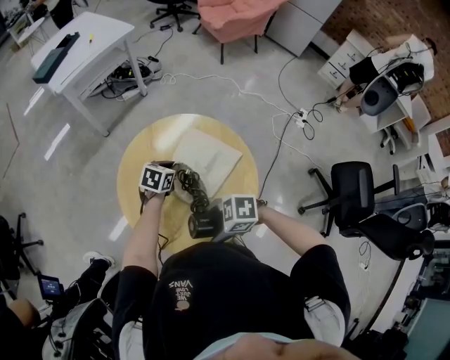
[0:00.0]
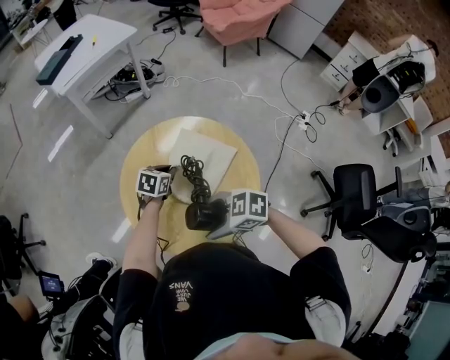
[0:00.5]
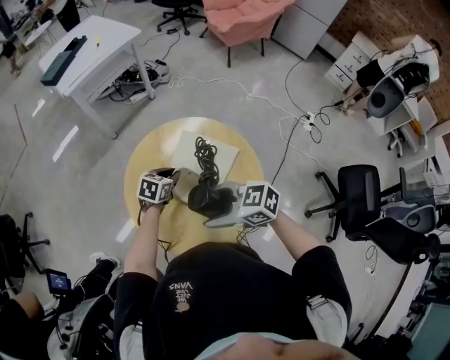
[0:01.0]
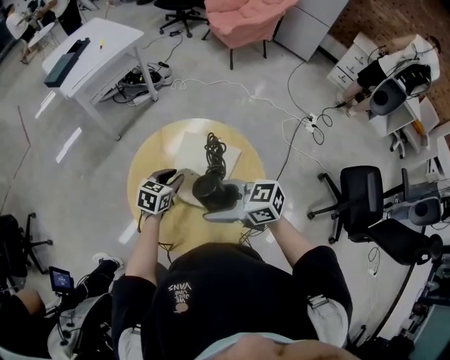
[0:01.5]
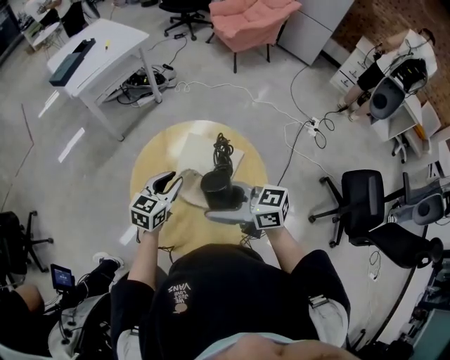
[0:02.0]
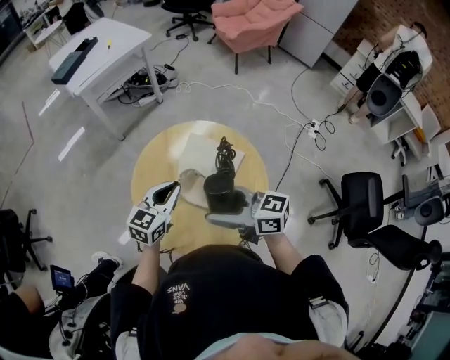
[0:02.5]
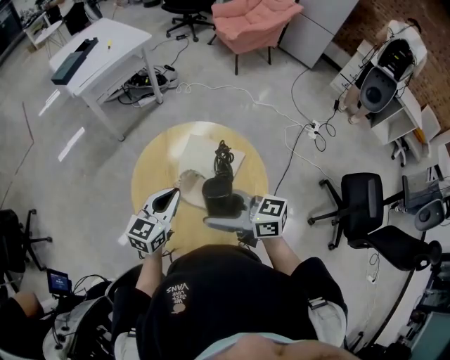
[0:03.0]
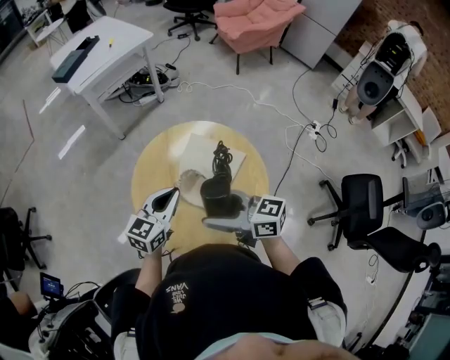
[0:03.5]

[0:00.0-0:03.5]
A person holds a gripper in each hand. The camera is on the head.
0.0 to 2.0 s: Both grippers move upward, approximately 15 cm. The right gripper tips its fingers upward by approximately 40 degrees. Meanwhile the left gripper rotates about 30 degrees.
2.0 to 3.5 s: The left gripper ends up approximately 5 cm from where it was, and closes.

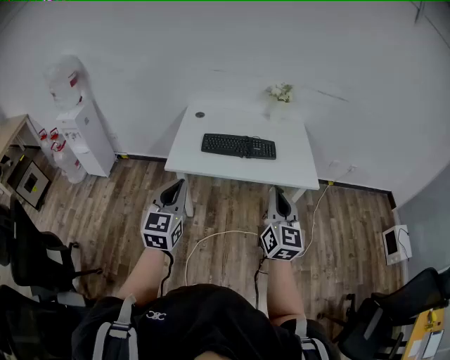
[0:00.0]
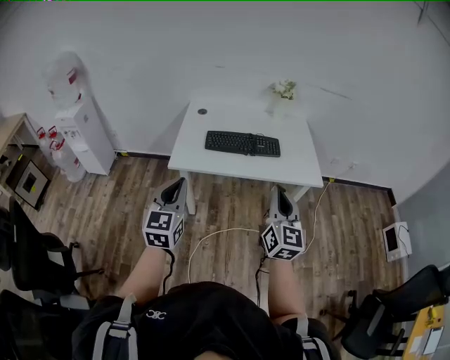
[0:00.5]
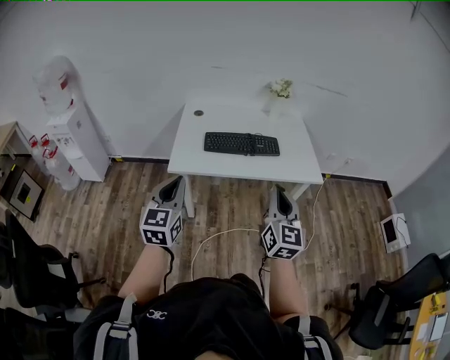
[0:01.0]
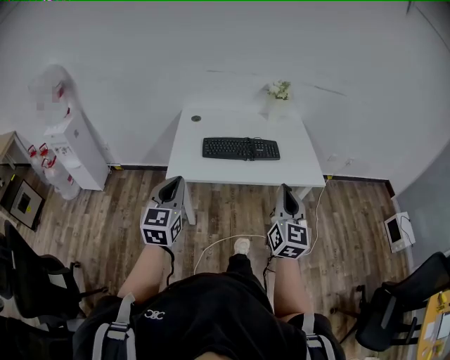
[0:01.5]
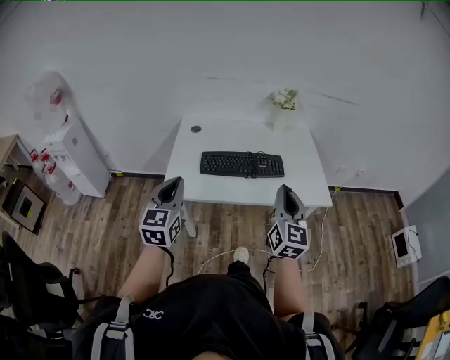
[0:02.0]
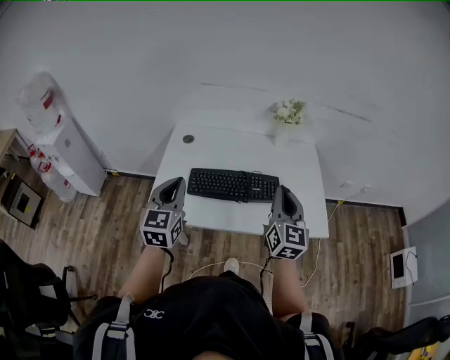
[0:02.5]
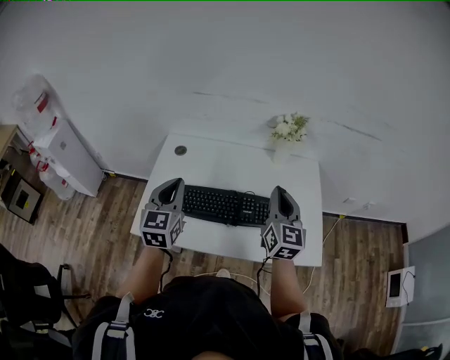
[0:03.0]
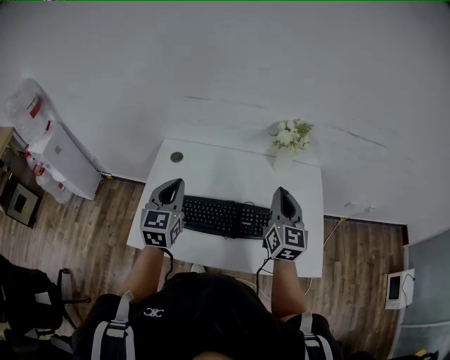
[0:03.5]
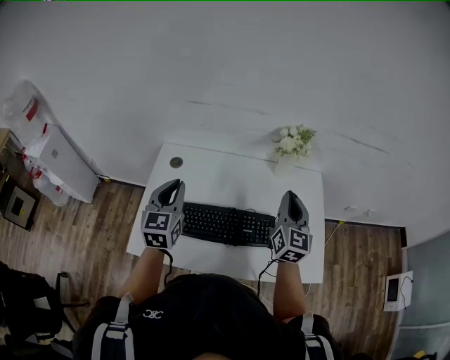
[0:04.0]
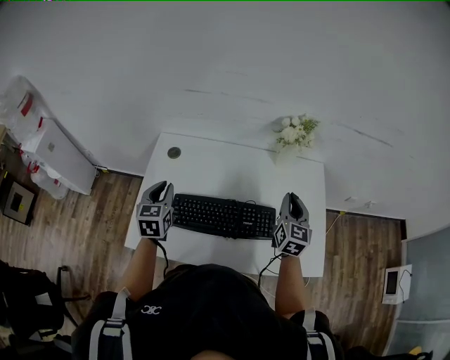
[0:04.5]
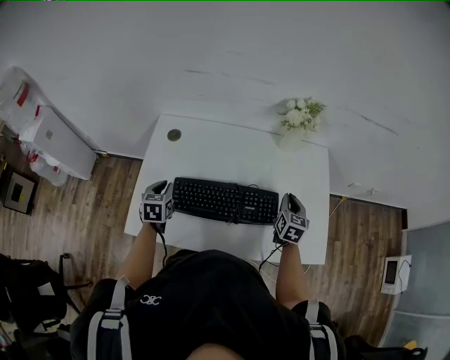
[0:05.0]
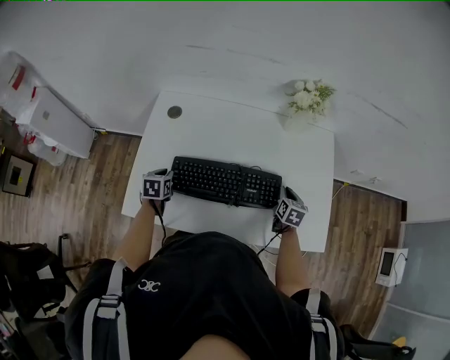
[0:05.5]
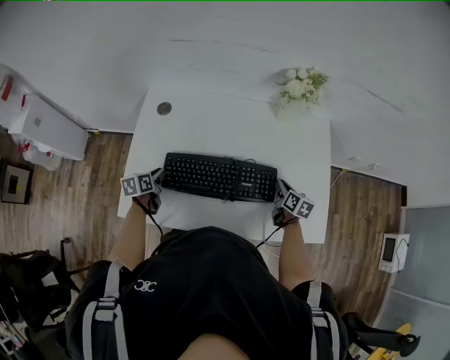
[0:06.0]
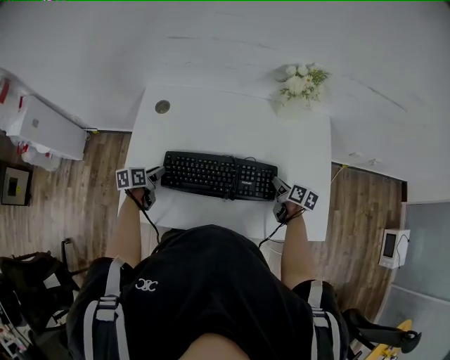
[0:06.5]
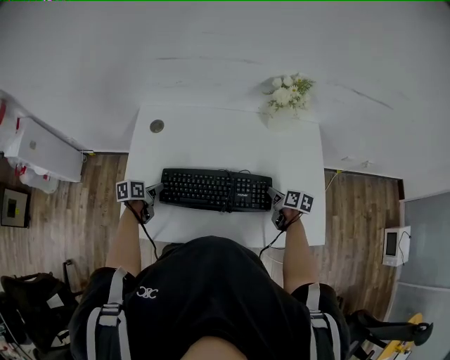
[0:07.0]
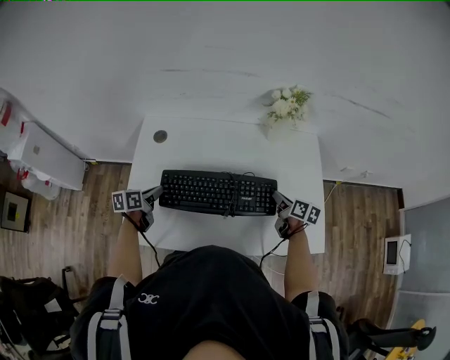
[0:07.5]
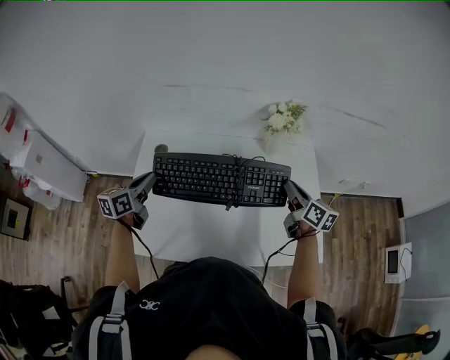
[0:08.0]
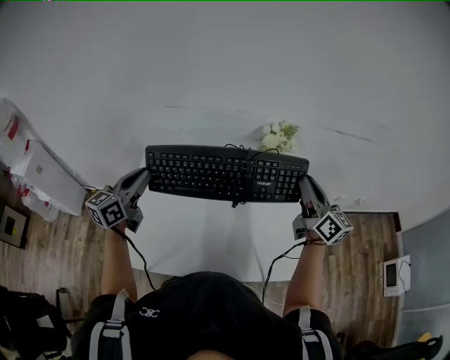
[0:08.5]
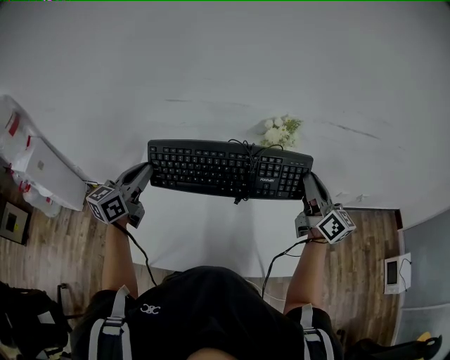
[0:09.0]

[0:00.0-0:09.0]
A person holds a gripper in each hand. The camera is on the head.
0.0 to 2.0 s: The two grippers go some 20 cm forward.
2.0 to 4.5 s: The pair of grippers is taken forward, about 40 cm. The left gripper turns by about 20 degrees.
4.5 to 7.0 s: The grippers both shift downward by about 25 cm. The left gripper turns by roughly 50 degrees, while the right gripper tilts its fingers some 30 degrees downward.
7.0 to 9.0 s: Both grippers travel together upward, about 35 cm. The right gripper tilts its fingers roughly 50 degrees upward, while the left gripper points its fingers approximately 40 degrees further upward.

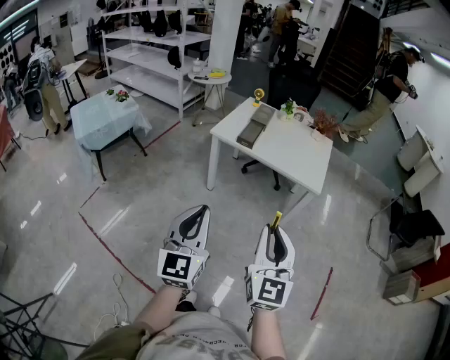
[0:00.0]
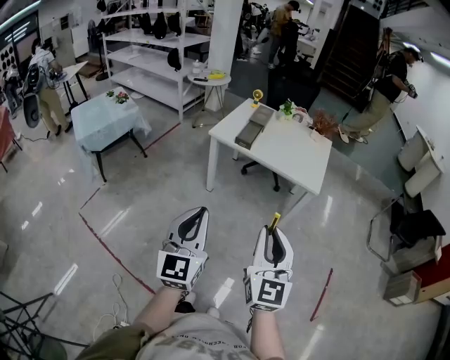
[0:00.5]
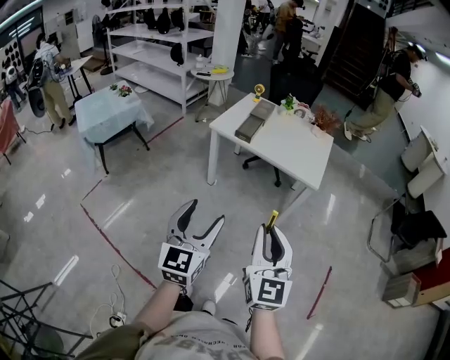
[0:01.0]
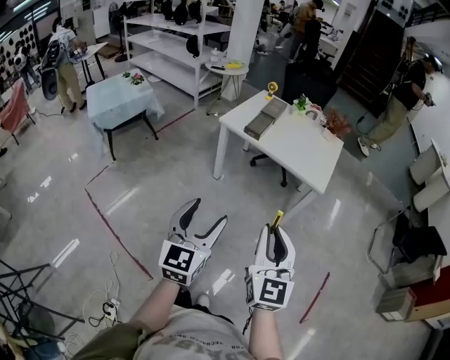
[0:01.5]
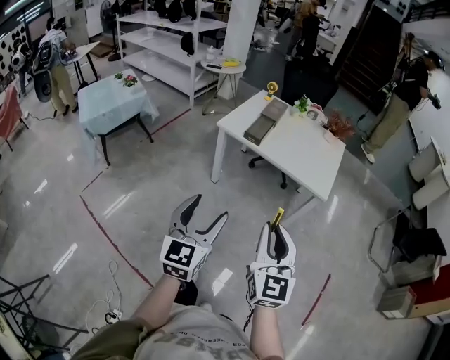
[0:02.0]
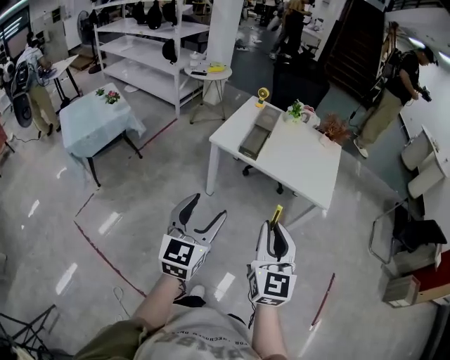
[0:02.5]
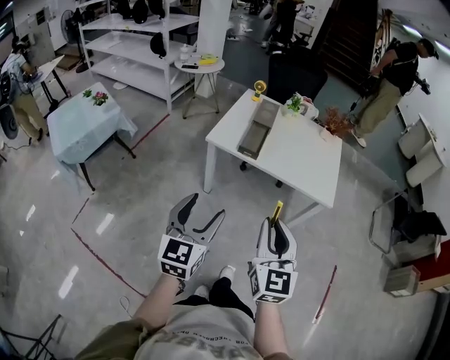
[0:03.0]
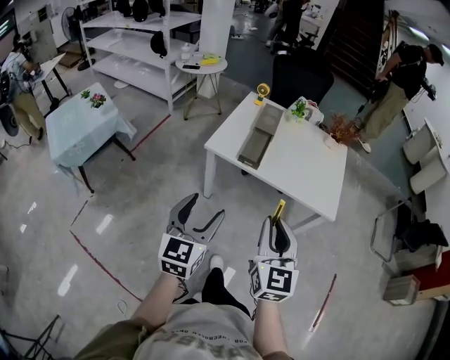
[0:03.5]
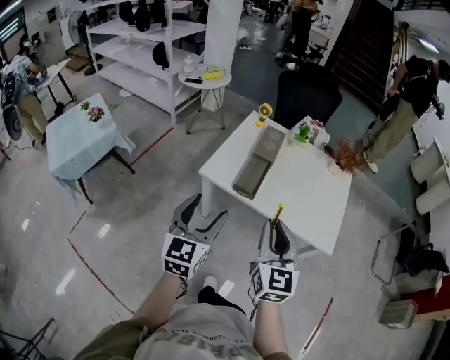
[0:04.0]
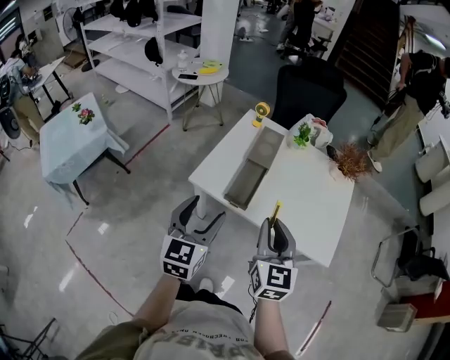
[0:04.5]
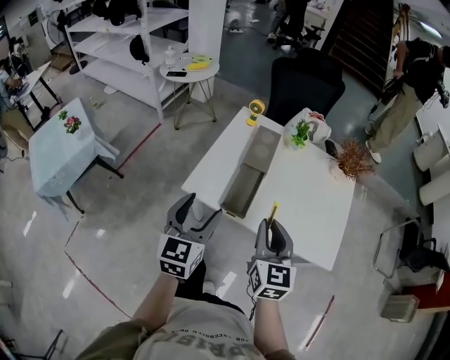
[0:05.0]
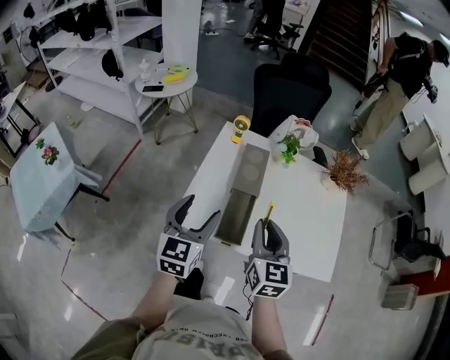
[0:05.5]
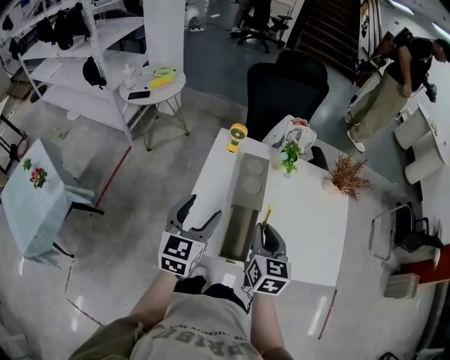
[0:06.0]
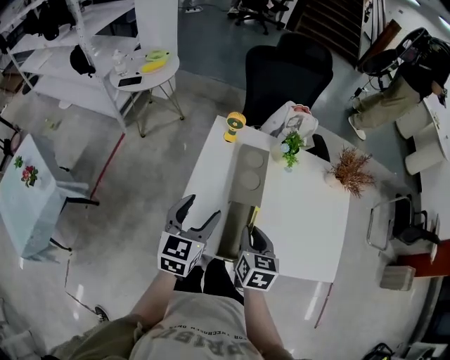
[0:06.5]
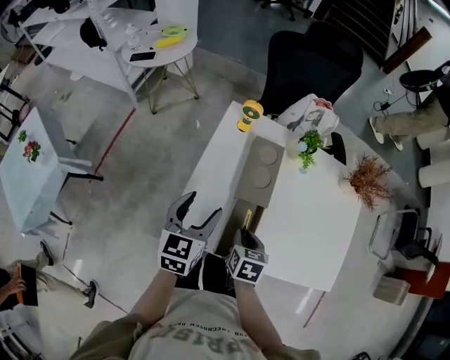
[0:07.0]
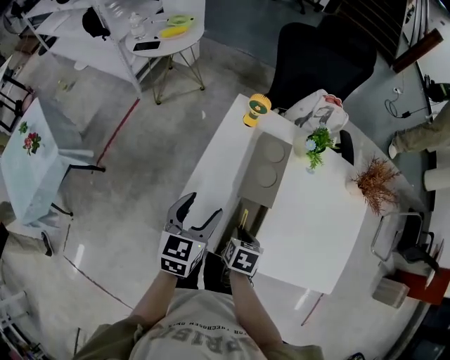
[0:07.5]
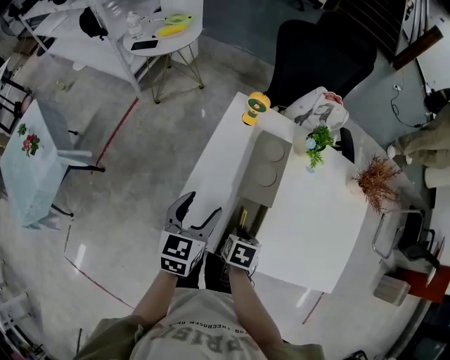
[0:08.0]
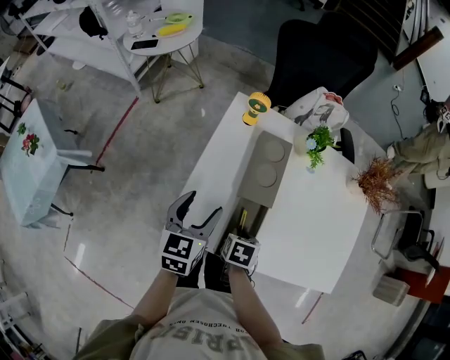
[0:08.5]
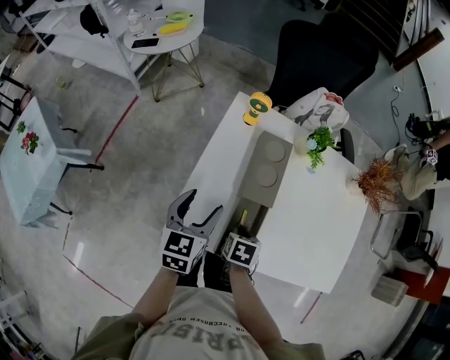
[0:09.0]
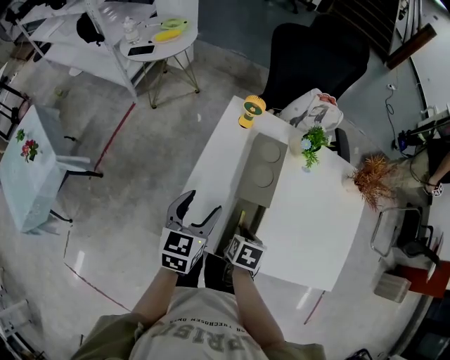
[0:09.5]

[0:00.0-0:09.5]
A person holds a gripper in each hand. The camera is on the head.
0.0 to 2.0 s: The right gripper travels forward by some 5 cm. The left gripper heads forward and downward, covering about 10 cm, and opens.
2.0 to 4.0 s: Both grippers travel together forward, approximately 35 cm.
4.0 to 5.5 s: The two grippers go some 25 cm forward.
5.5 to 7.5 s: The left gripper shifts about 15 cm downward and forward. Meanwhile the right gripper travels downward by some 25 cm, and tips its fingers downward by some 50 degrees.
7.5 to 9.5 s: There are only small adjustments of the grippers.

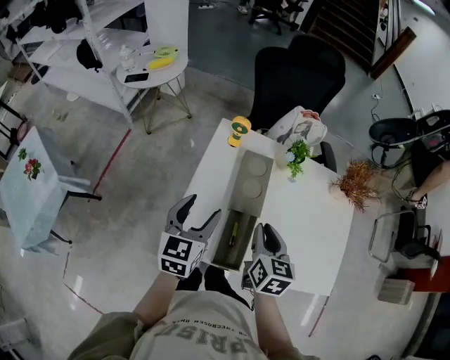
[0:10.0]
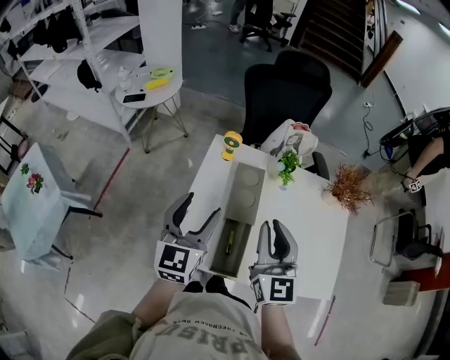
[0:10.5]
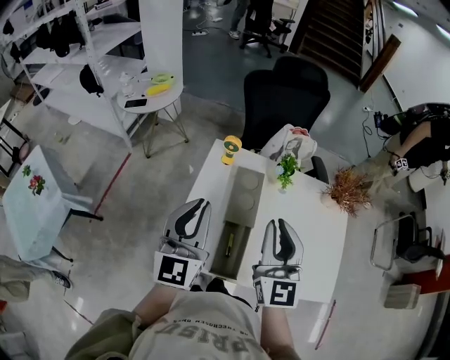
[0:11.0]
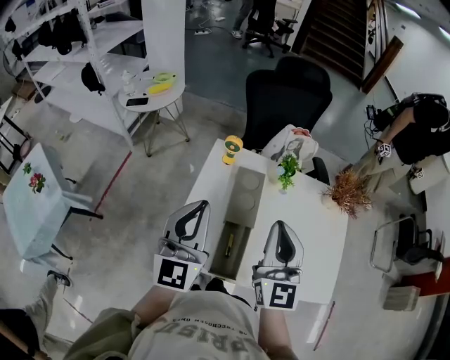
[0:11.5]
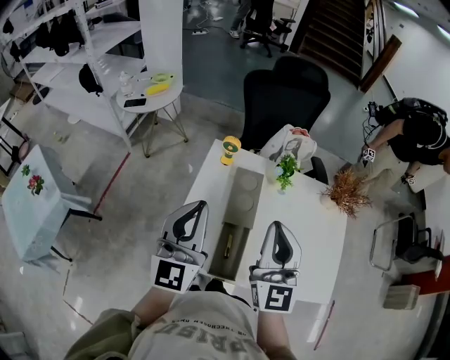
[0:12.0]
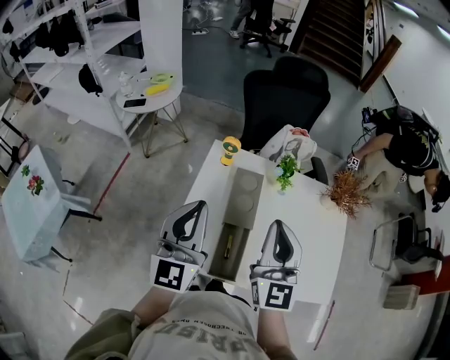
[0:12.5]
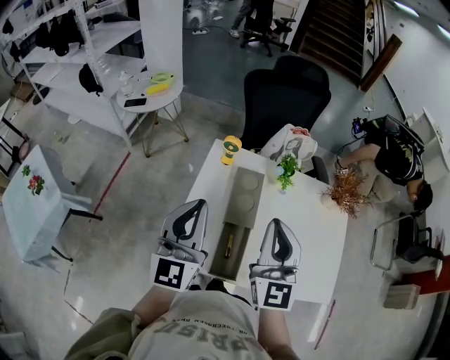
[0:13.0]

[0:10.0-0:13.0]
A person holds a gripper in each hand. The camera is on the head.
10.0 to 11.5 s: The grippers both shift upward by about 15 cm. The left gripper tips its fingers upward by approximately 30 degrees, and closes; the right gripper points its fingers some 40 degrees further upward.
11.5 to 13.0 s: Both grippers stay about where they are.

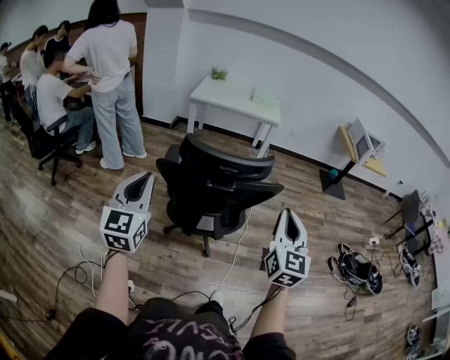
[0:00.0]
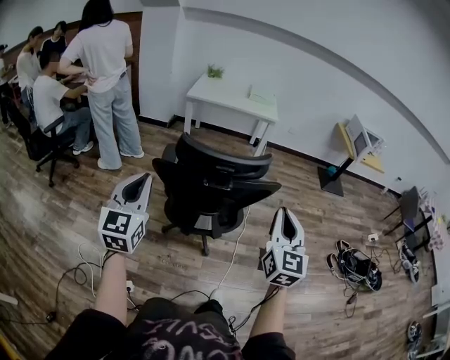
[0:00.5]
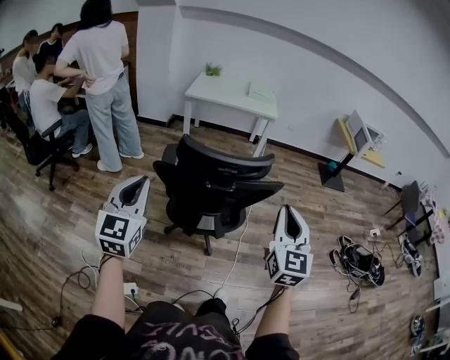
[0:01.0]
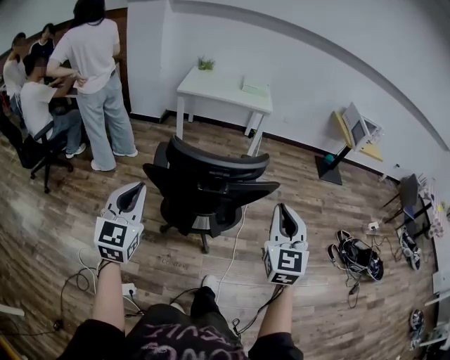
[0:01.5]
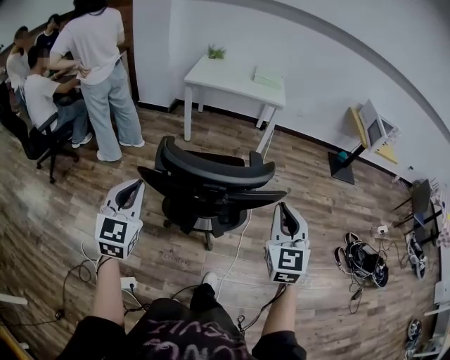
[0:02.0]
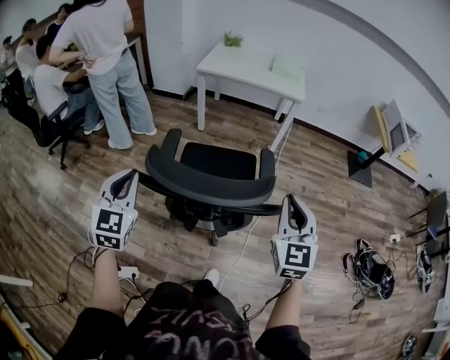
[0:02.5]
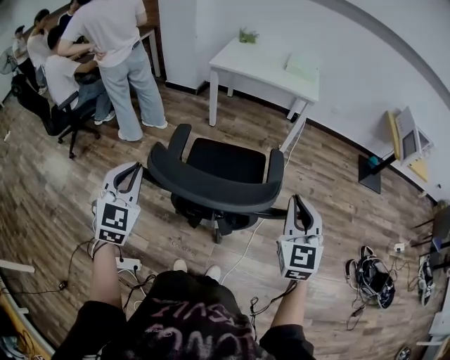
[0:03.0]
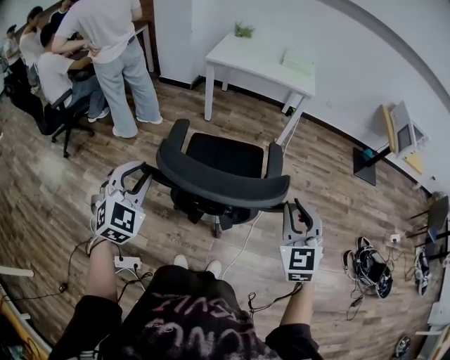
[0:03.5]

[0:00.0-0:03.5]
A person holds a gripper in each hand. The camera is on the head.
0.0 to 2.0 s: The right gripper is displaced forward by about 10 cm, while the left gripper is displaced forward and downward by some 10 cm.
2.0 to 3.5 s: The two grippers go roughly 10 cm forward. The left gripper turns by roughly 30 degrees.
